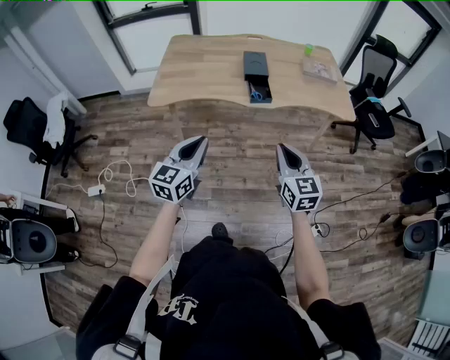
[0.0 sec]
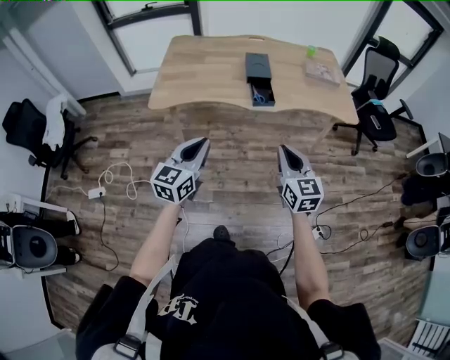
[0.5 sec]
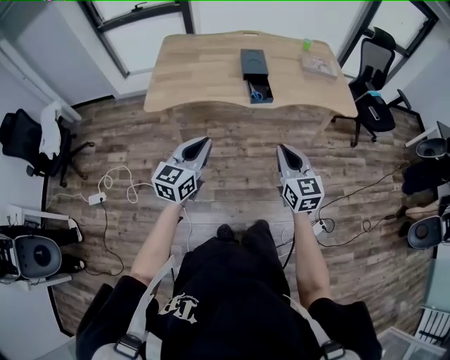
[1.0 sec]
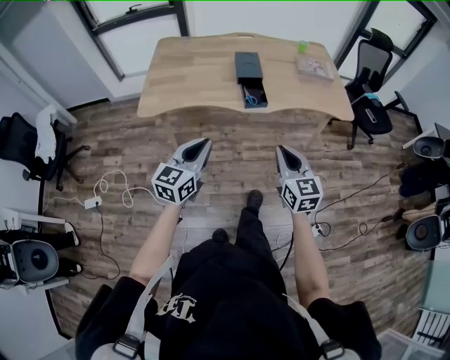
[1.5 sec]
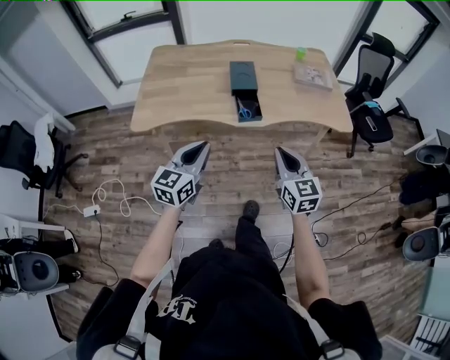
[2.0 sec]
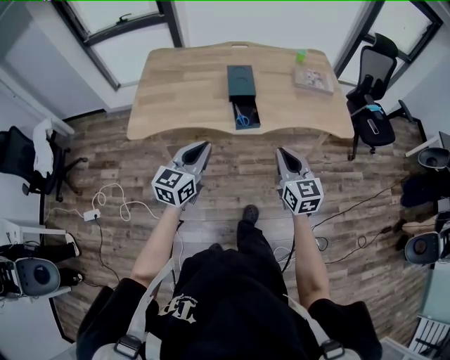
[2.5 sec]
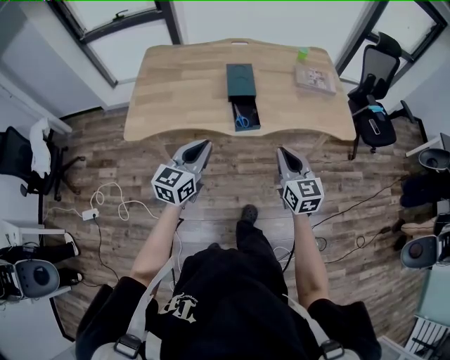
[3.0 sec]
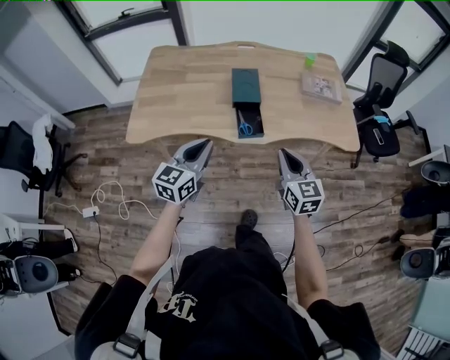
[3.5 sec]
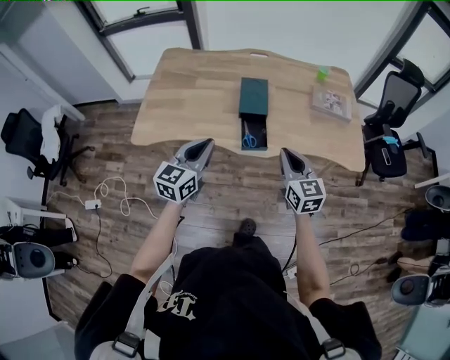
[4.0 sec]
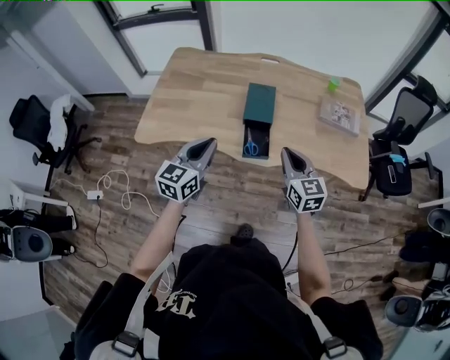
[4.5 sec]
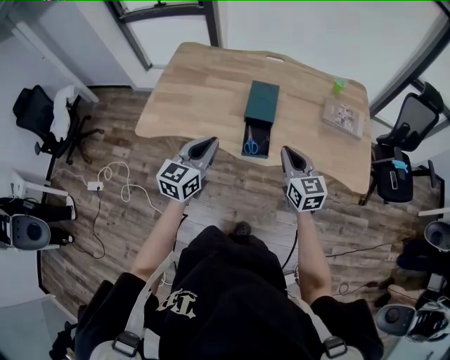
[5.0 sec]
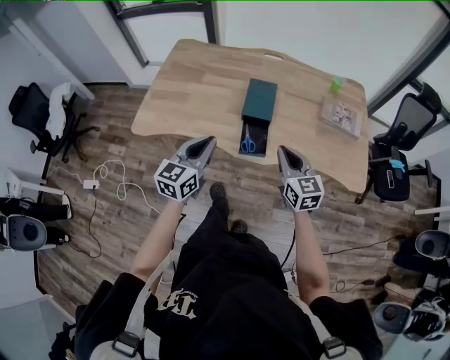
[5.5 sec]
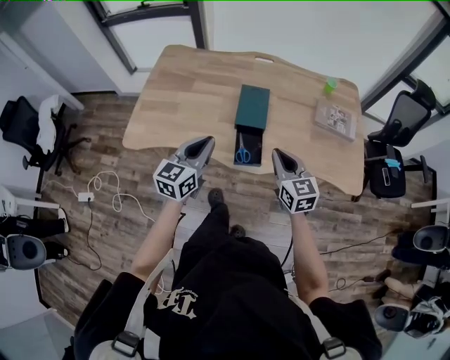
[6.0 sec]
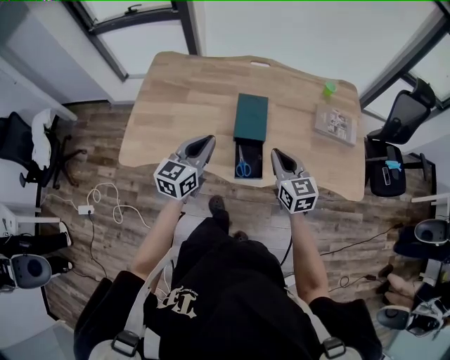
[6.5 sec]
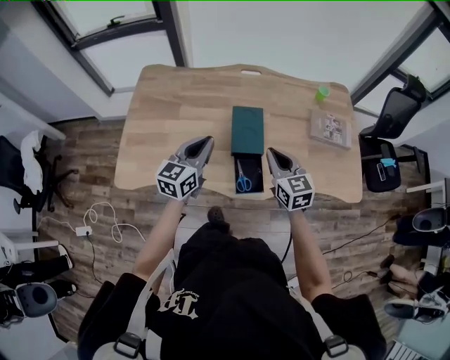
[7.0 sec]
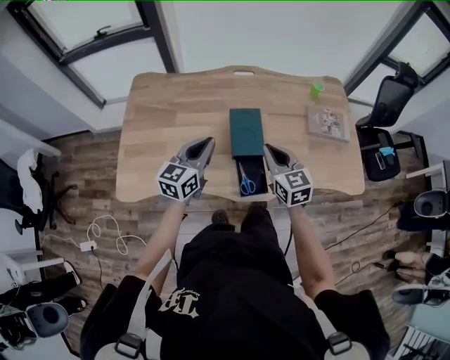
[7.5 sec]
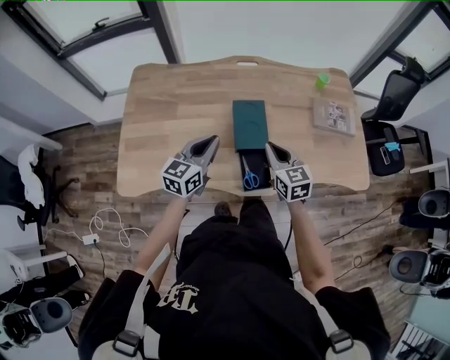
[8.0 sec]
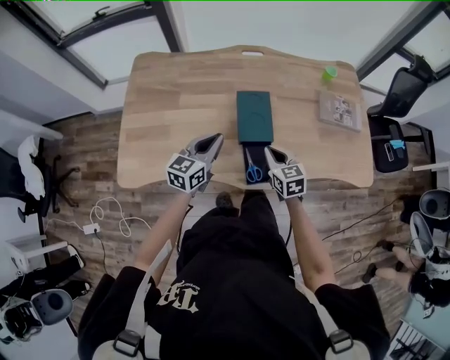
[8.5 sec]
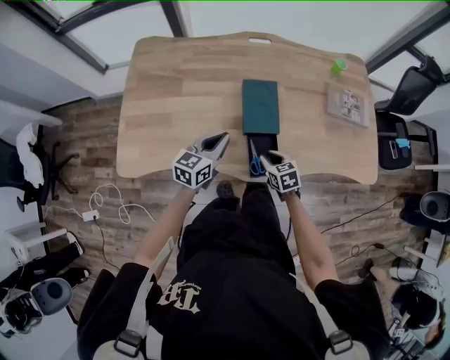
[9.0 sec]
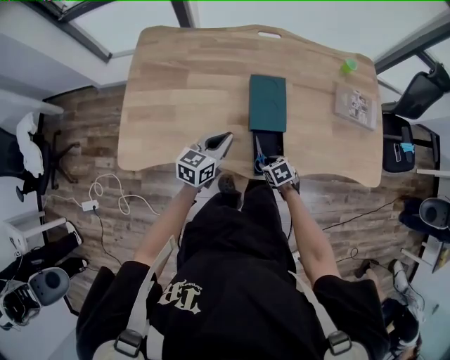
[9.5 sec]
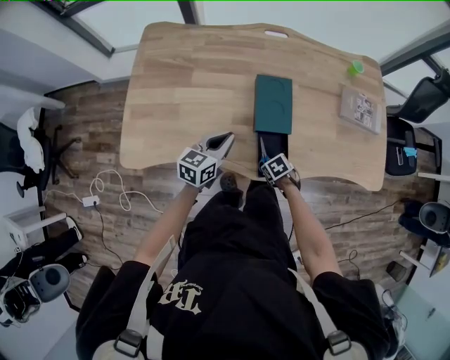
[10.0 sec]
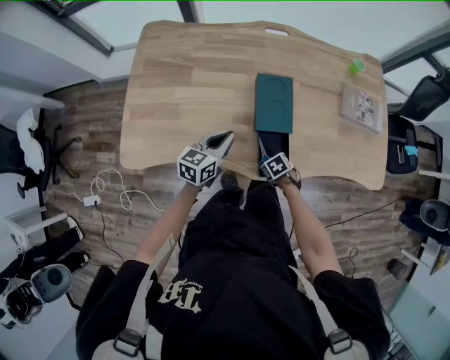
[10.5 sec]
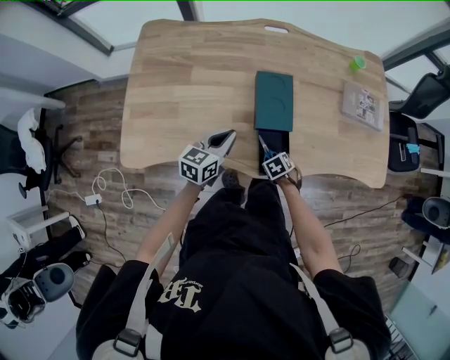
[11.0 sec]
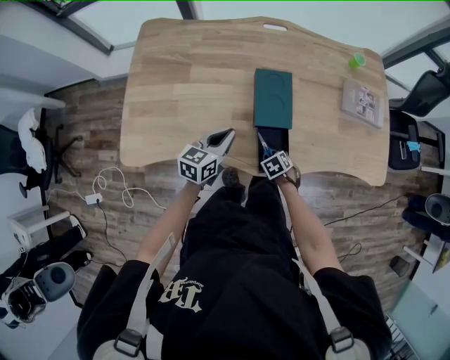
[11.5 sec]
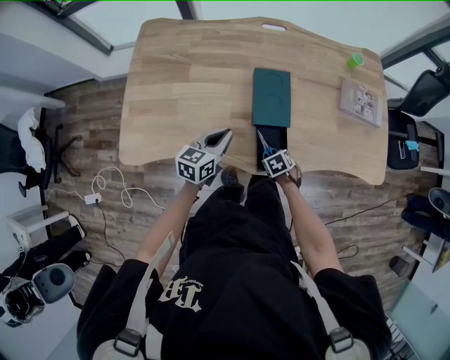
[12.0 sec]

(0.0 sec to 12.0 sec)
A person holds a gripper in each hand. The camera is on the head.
0.0 sec - 2.0 sec: The grippers both shift forward by some 15 cm.
2.0 sec - 4.0 sec: The two grippers go about 20 cm forward.
4.0 sec - 6.0 sec: Both grippers move forward, roughly 10 cm.
6.0 sec - 8.0 sec: The left gripper travels forward by approximately 20 cm. The right gripper shifts approximately 15 cm forward and to the left.
8.0 sec - 10.0 sec: The right gripper shifts approximately 30 cm downward, angles its fingers downward, by about 50 degrees, and opens up; the left gripper heads downward, covering some 15 cm.
10.0 sec - 12.0 sec: The grippers move only a little.

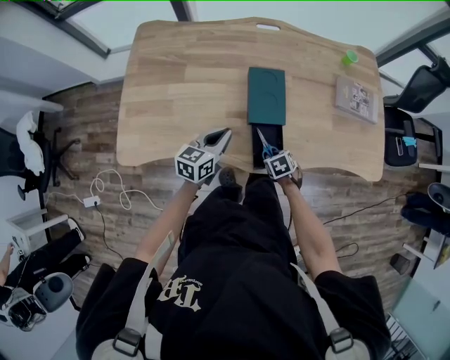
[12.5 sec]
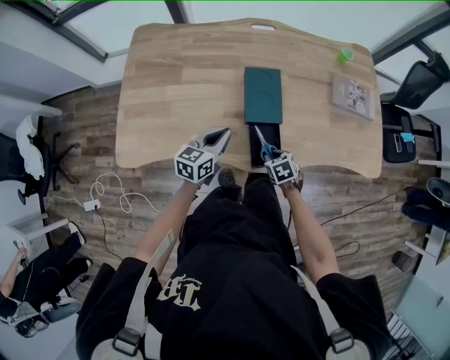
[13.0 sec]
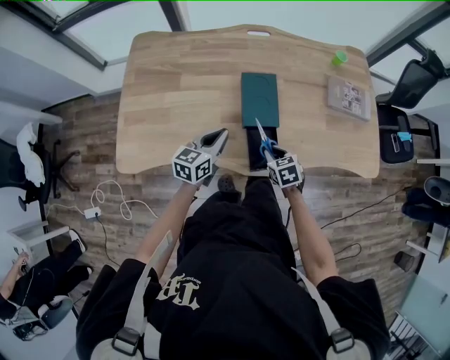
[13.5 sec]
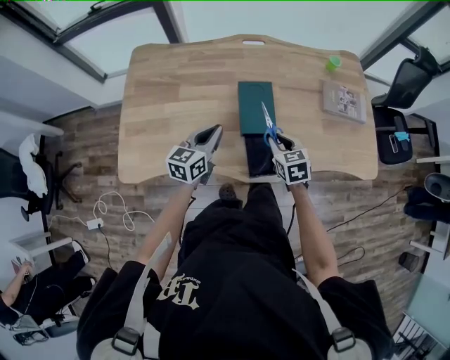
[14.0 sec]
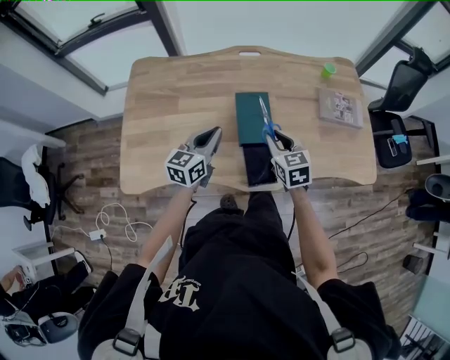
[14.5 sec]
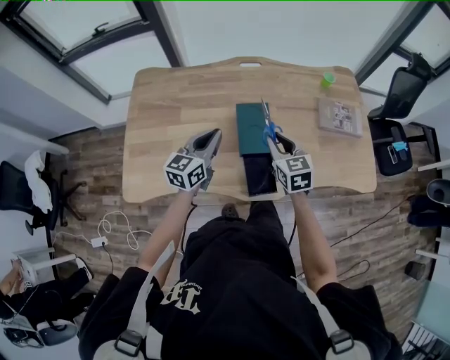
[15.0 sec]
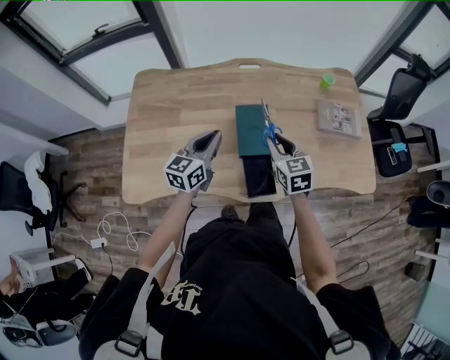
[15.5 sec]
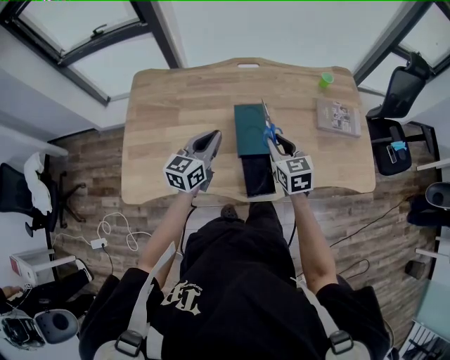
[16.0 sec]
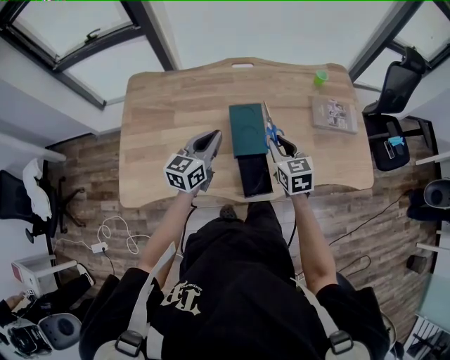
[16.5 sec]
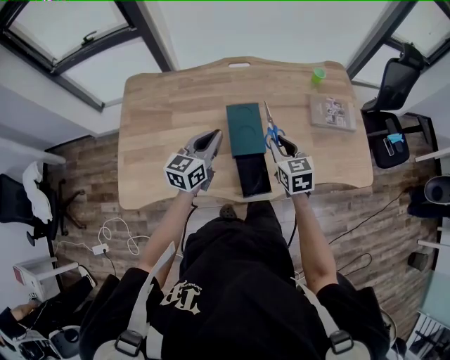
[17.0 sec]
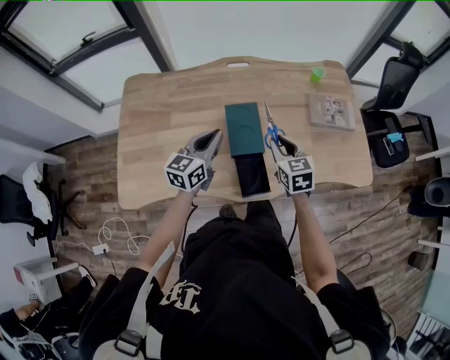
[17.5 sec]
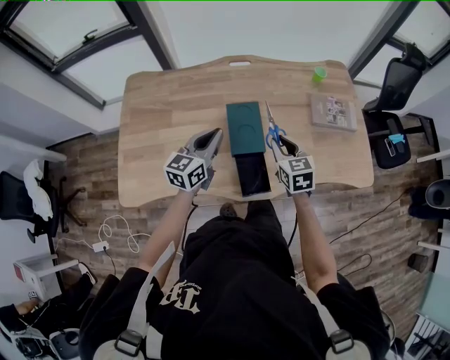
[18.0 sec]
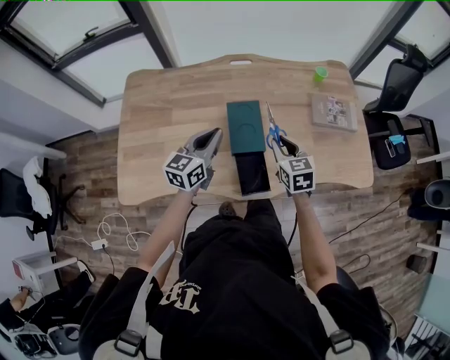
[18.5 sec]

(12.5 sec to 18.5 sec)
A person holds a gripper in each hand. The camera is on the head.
12.5 sec - 14.5 sec: The right gripper goes some 25 cm upward and forward, and tilts its fingers some 40 degrees upward, while the left gripper heads upward, covering approximately 10 cm.
14.5 sec - 16.5 sec: The grippers make only small movements.
16.5 sec - 18.5 sec: There are only small adjustments of the grippers.

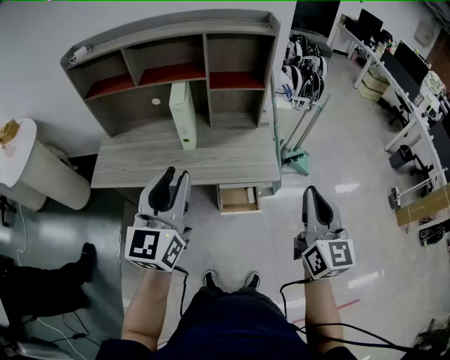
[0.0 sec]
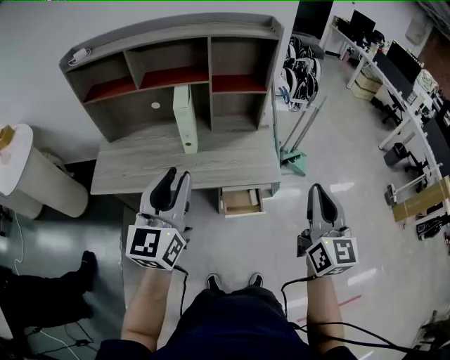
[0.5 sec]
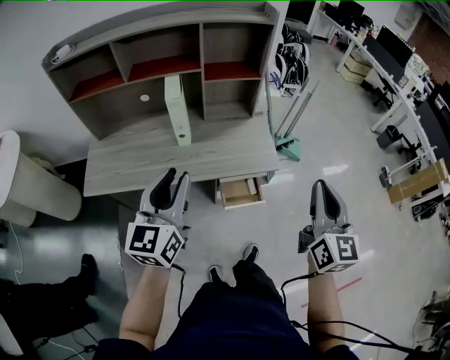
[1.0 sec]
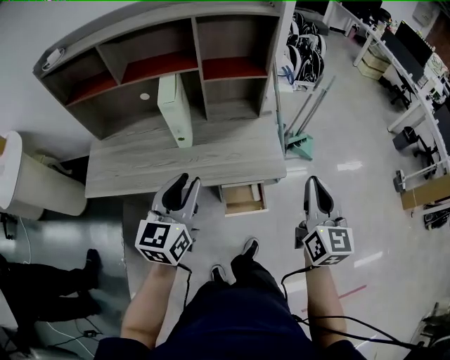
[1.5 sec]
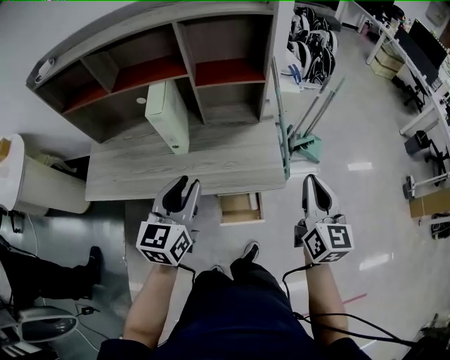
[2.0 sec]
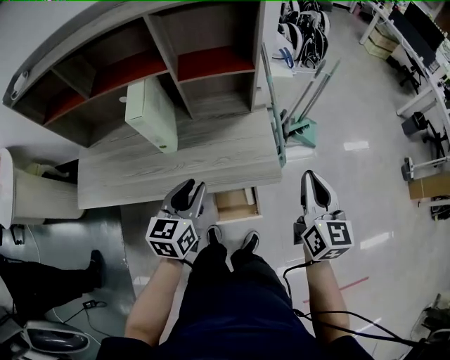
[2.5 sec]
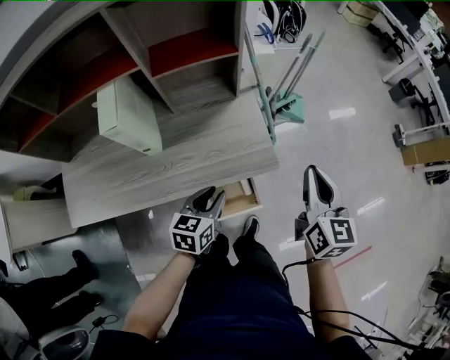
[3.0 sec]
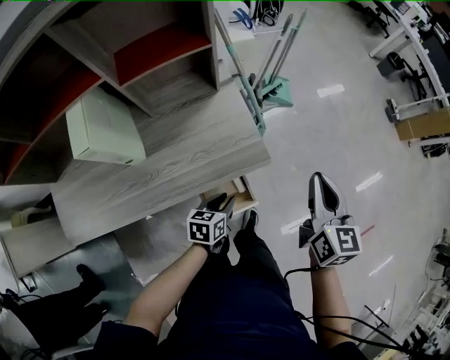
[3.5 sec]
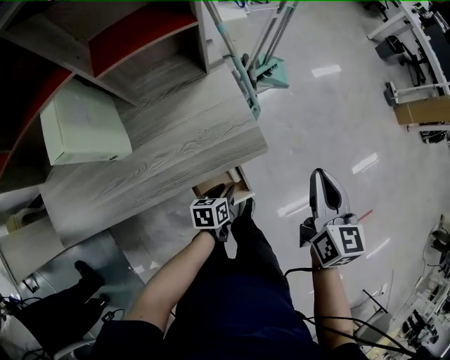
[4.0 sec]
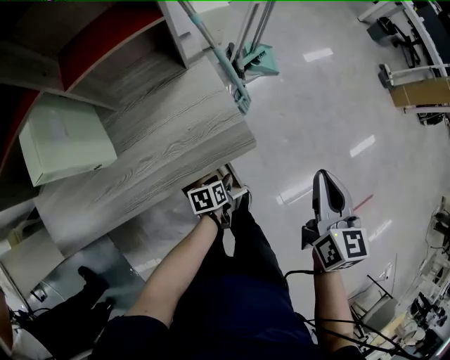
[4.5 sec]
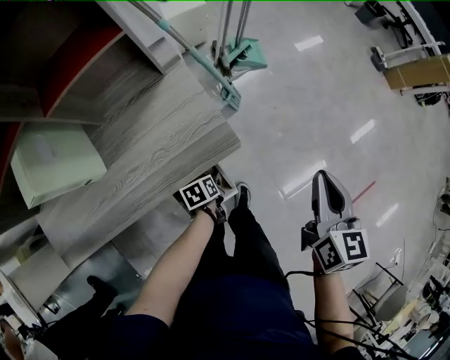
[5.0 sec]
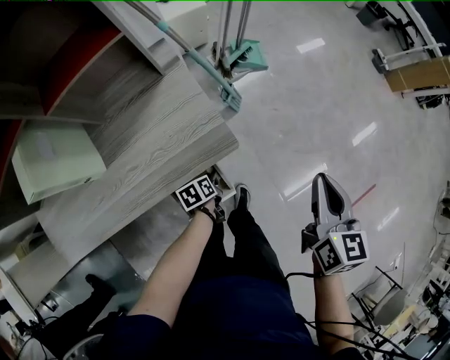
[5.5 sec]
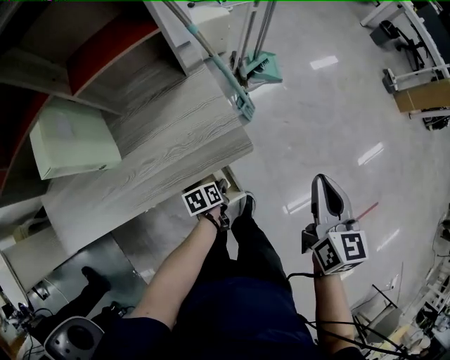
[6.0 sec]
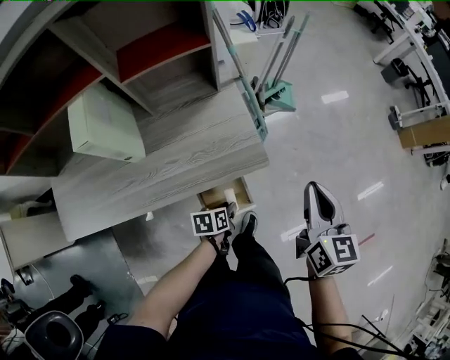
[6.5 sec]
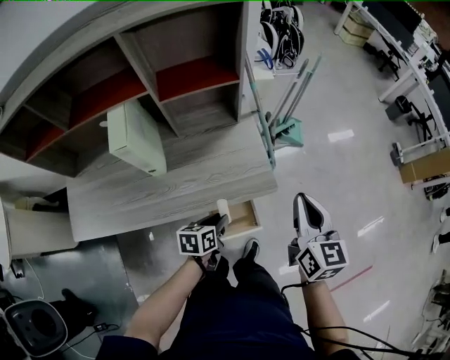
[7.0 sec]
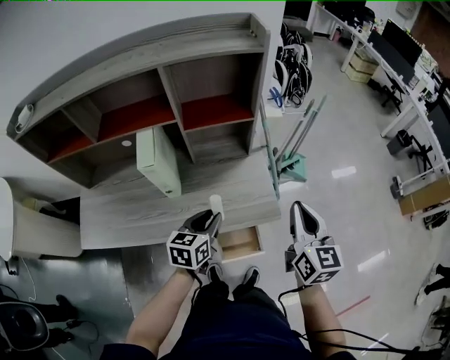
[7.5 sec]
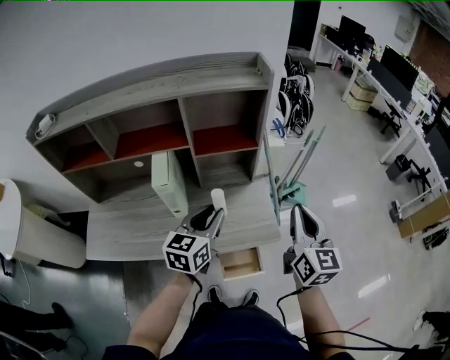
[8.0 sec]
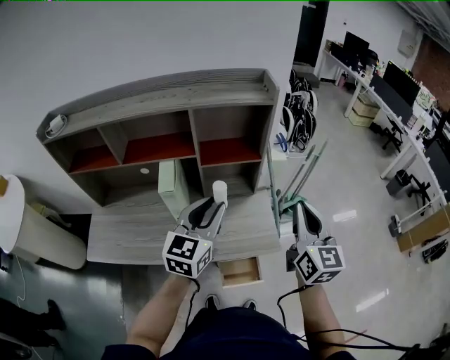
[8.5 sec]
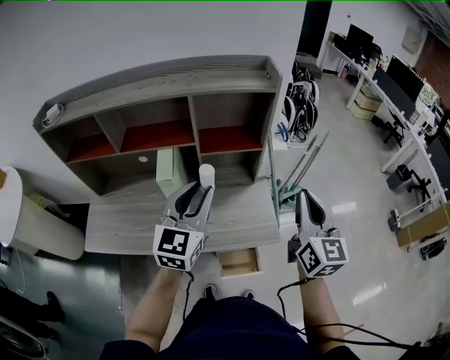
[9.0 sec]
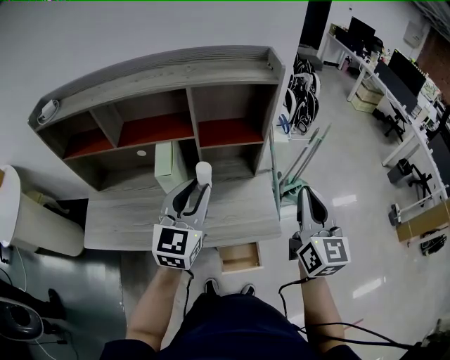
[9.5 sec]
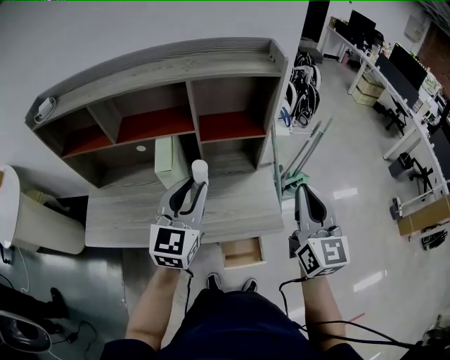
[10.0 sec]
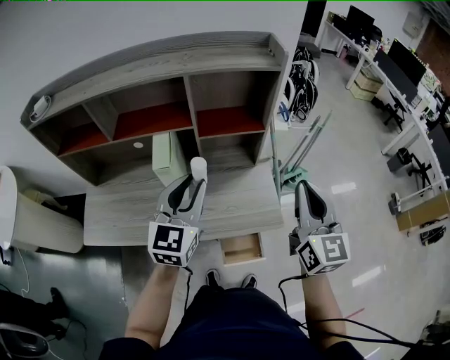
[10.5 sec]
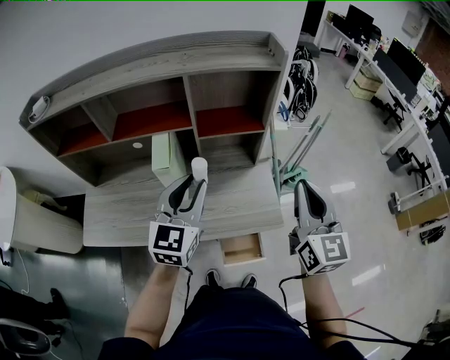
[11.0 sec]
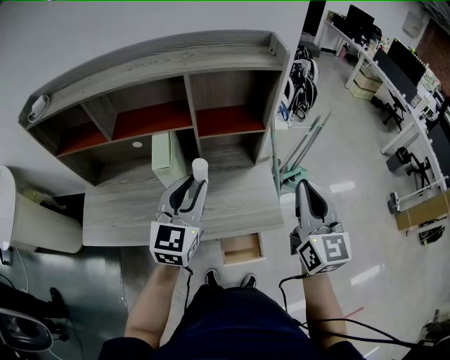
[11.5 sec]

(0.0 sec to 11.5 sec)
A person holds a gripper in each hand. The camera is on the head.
0.0 sec - 2.0 sec: The right gripper goes roughly 20 cm forward and downward. Meanwhile the left gripper goes about 20 cm downward and forward.
2.0 sec - 4.0 sec: The right gripper goes roughly 10 cm downward, and rotates approximately 30 degrees, while the left gripper goes approximately 40 cm downward, and points its fingers roughly 30 degrees further downward.
4.0 sec - 6.0 sec: The right gripper goes about 5 cm to the right; the left gripper is displaced downward by approximately 5 cm.
6.0 sec - 7.5 sec: The right gripper moves to the left and upward, approximately 20 cm, and swivels some 20 degrees. Meanwhile the left gripper goes about 35 cm upward and to the left, and swivels about 50 degrees.
7.5 sec - 9.5 sec: The left gripper heads upward, covering about 20 cm, and swivels about 40 degrees. Meanwhile the right gripper goes approximately 10 cm upward.
9.5 sec - 11.5 sec: The grippers move only a little.
